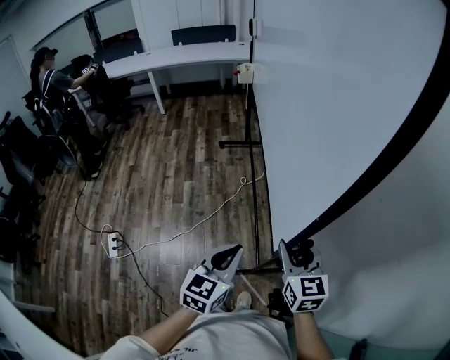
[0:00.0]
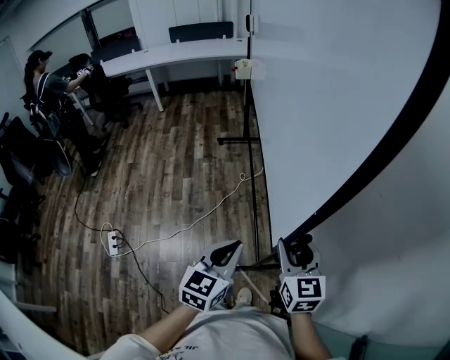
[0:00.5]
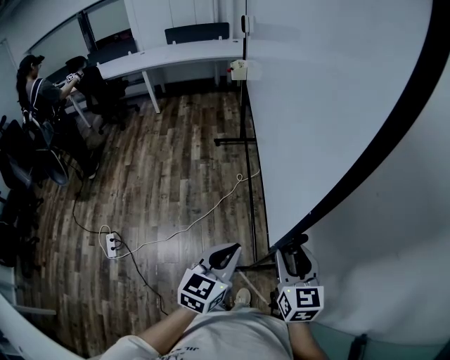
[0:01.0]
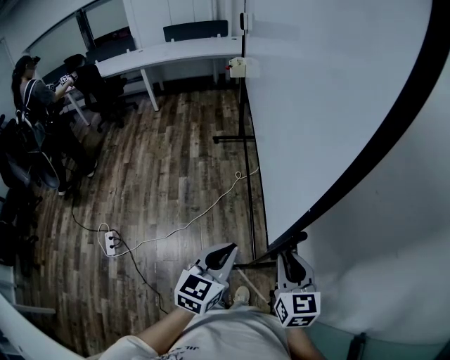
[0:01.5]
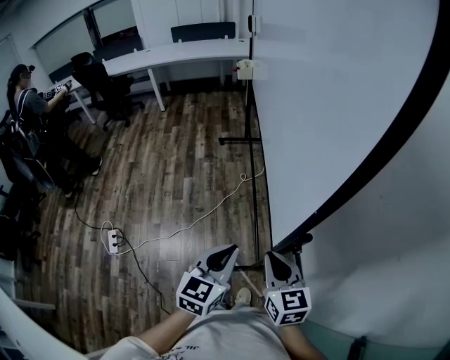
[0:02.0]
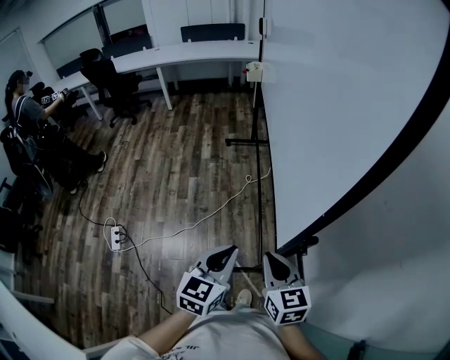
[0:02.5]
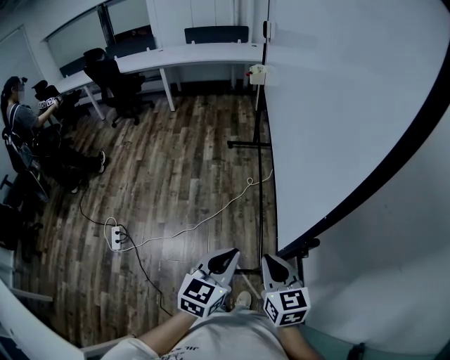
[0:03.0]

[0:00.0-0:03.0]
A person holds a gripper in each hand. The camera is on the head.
0:00.0 to 0:01.5: The right gripper shifts approximately 5 cm backward, and closes its fingers.
0:01.5 to 0:03.0: The right gripper moves to the left, roughly 10 cm.

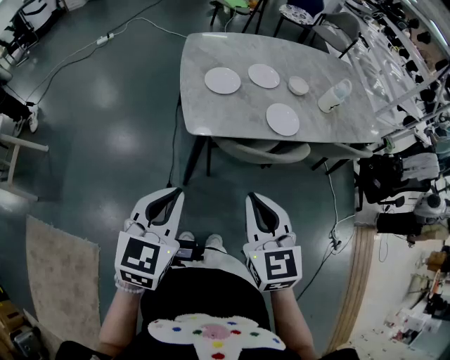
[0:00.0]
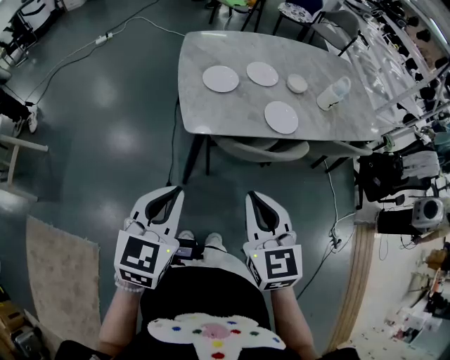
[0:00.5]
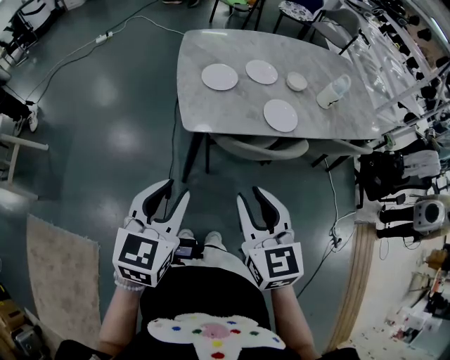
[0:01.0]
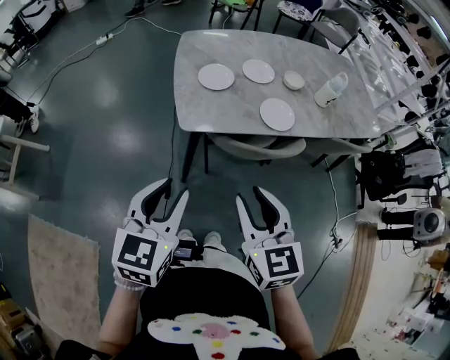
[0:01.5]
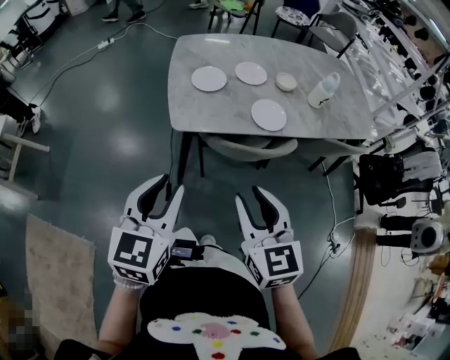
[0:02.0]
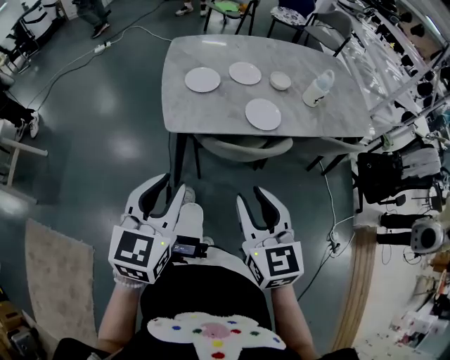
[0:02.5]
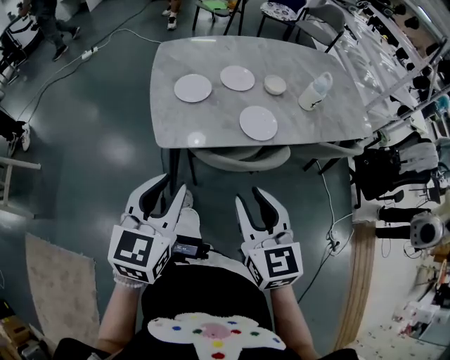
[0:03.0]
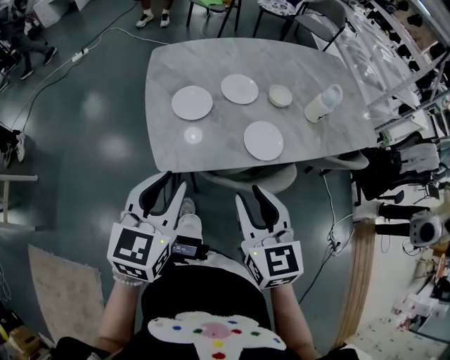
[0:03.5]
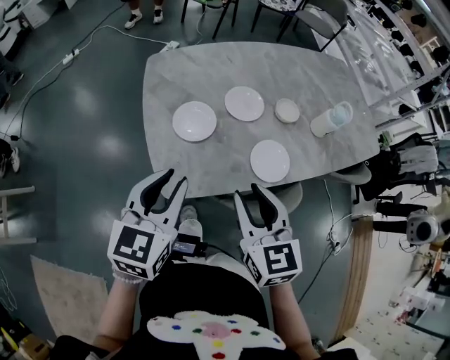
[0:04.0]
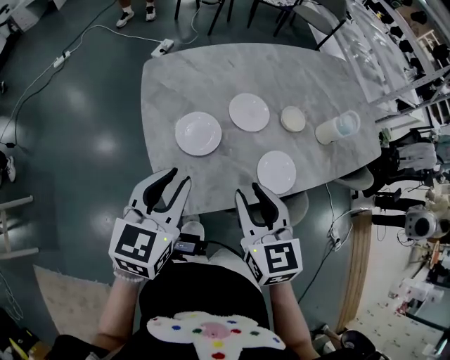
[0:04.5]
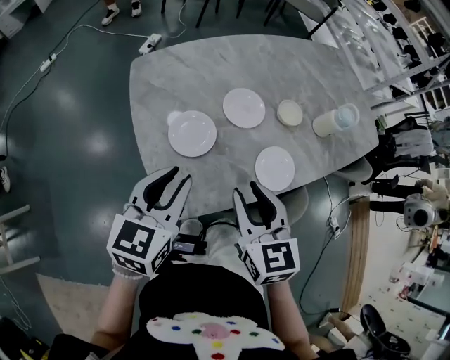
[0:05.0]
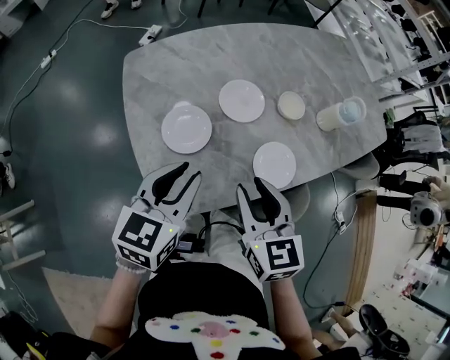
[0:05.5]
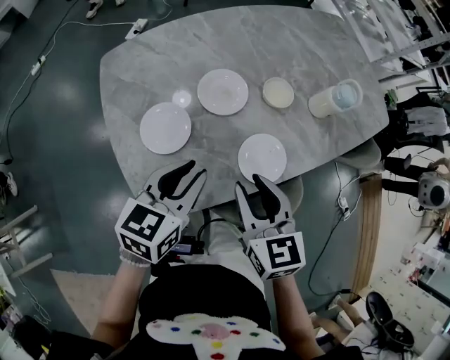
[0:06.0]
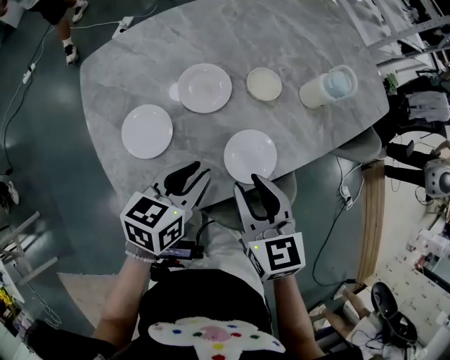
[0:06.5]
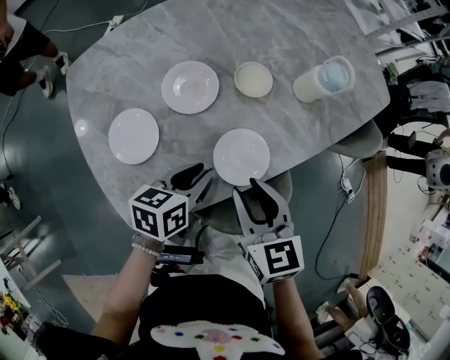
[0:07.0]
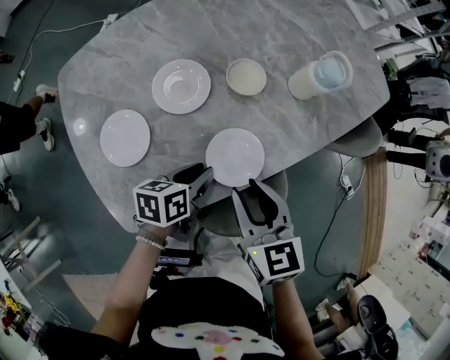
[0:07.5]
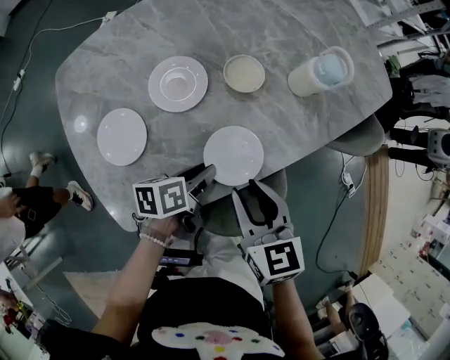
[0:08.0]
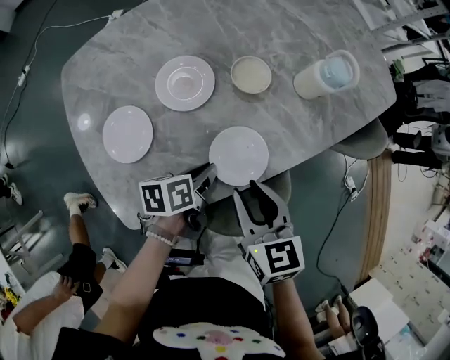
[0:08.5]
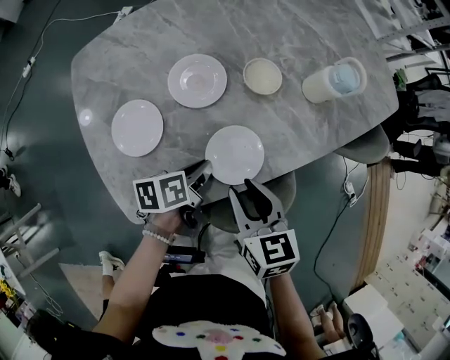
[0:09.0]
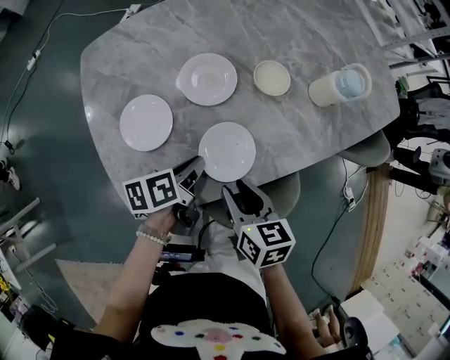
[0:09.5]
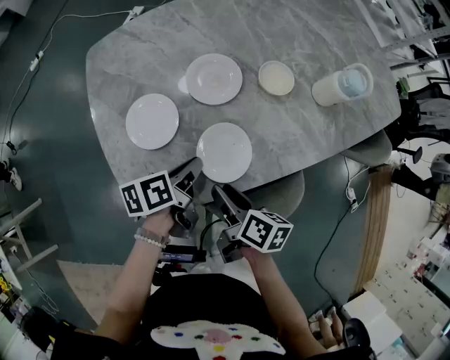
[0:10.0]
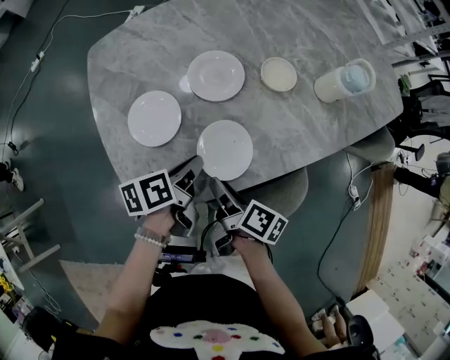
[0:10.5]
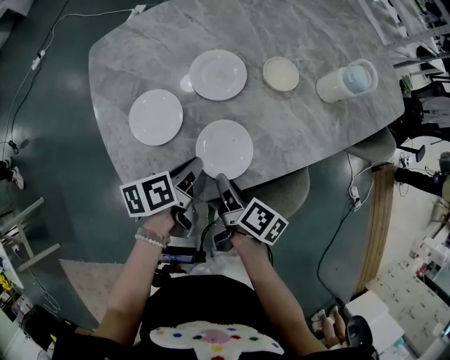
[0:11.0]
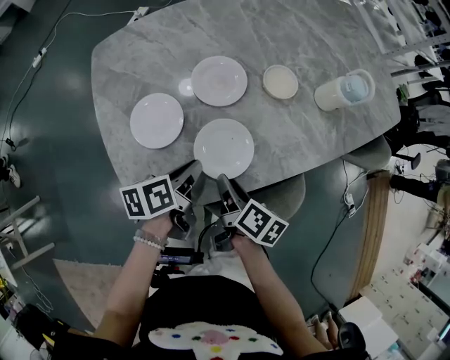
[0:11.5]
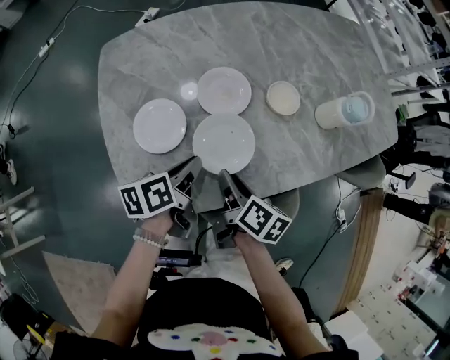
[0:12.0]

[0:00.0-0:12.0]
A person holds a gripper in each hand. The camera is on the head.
0:00.0 to 0:02.0: Both grippers move to the right, approximately 5 cm. The right gripper opens up. The left gripper opens.
0:02.0 to 0:04.0: Both grippers travel together forward, some 25 cm.
0:04.0 to 0:06.0: The right gripper goes about 10 cm forward and downward. The left gripper travels forward, downward and to the right by roughly 15 cm, and changes its angle by about 20 degrees.
0:06.0 to 0:08.0: The right gripper travels to the right and downward by about 10 cm; the left gripper goes approximately 20 cm downward and to the right, and rotates around the line of its fingers by roughly 40 degrees, counterclockwise from behind.
0:08.0 to 0:10.0: The left gripper is displaced to the left by approximately 10 cm, and closes up, while the right gripper heads downward, to the left and backward, covering some 15 cm, and rotates around the line of its fingers by some 50 degrees, clockwise from behind.
0:10.0 to 0:12.0: The right gripper goes approximately 5 cm forward.

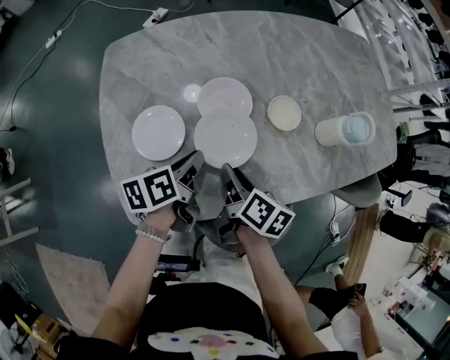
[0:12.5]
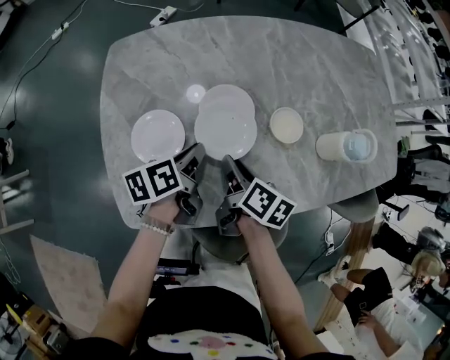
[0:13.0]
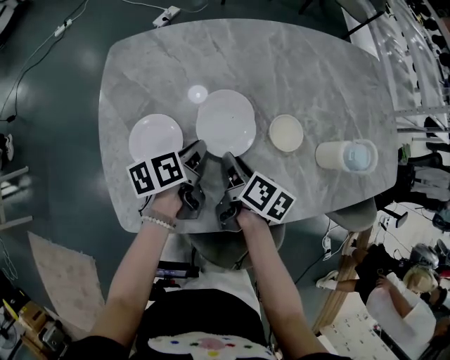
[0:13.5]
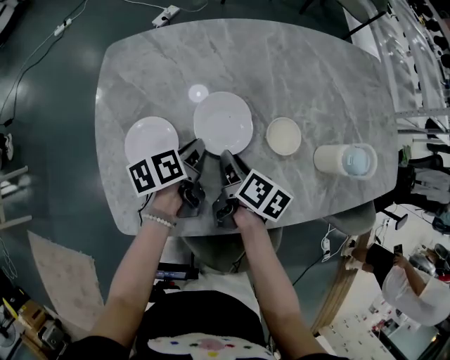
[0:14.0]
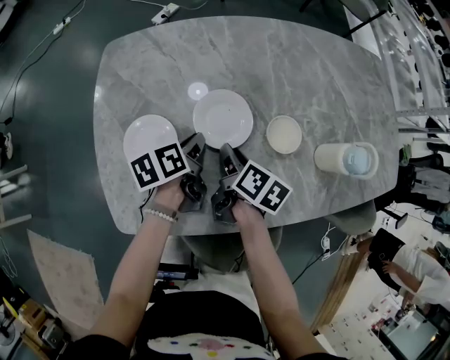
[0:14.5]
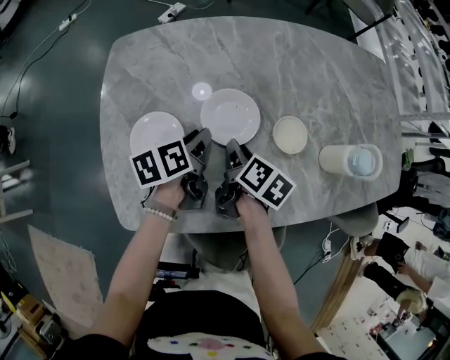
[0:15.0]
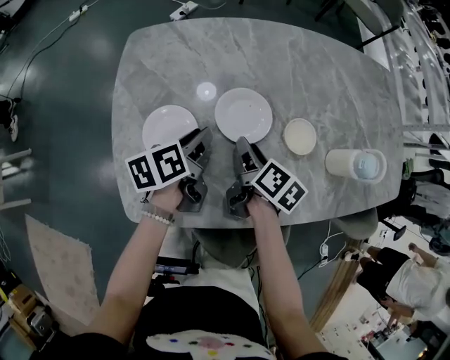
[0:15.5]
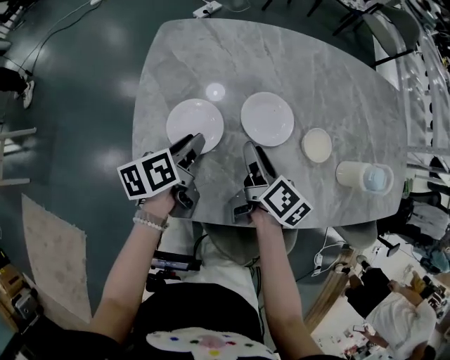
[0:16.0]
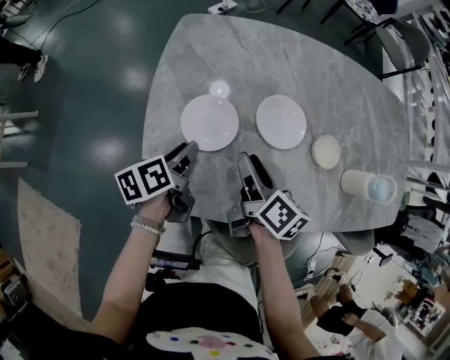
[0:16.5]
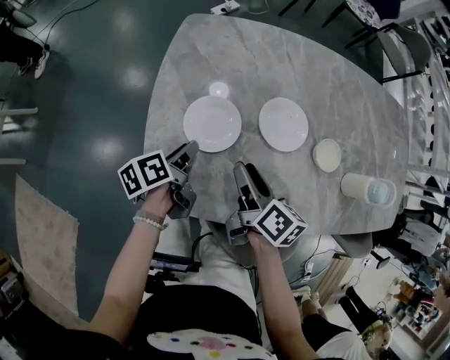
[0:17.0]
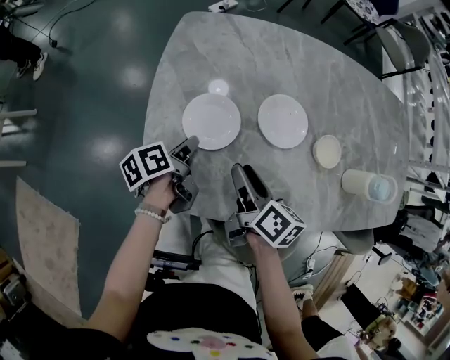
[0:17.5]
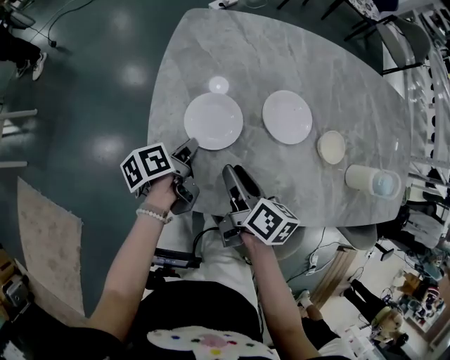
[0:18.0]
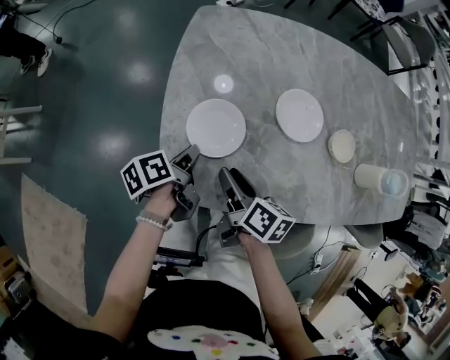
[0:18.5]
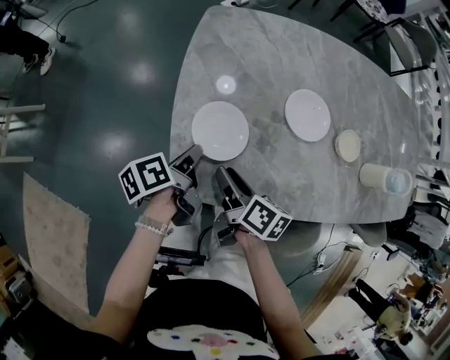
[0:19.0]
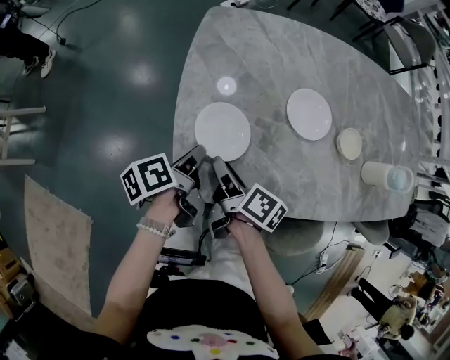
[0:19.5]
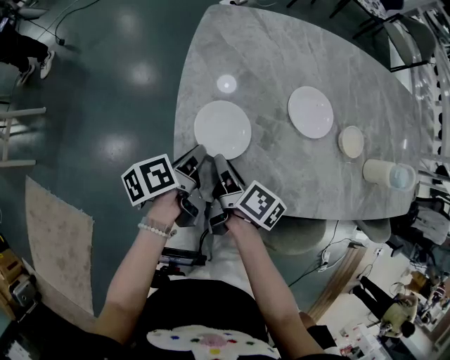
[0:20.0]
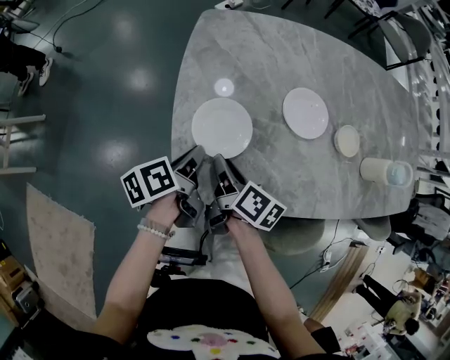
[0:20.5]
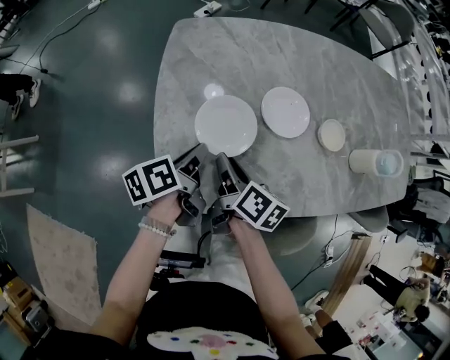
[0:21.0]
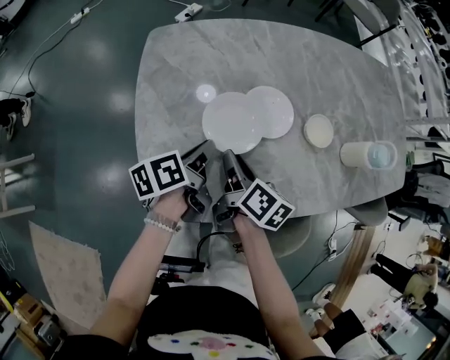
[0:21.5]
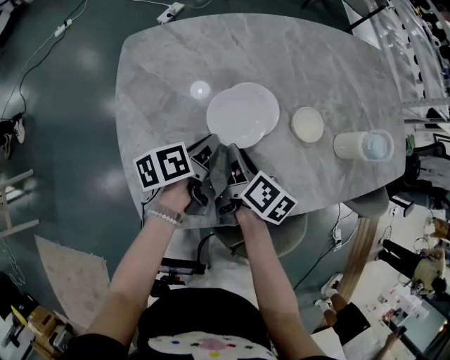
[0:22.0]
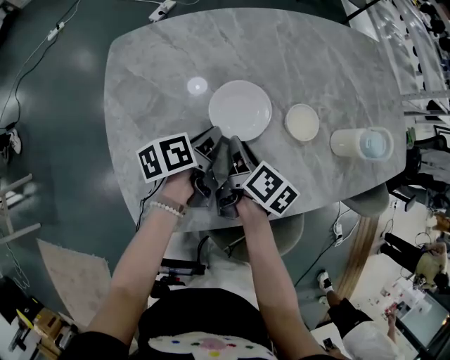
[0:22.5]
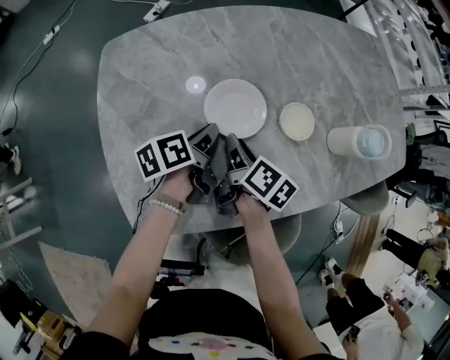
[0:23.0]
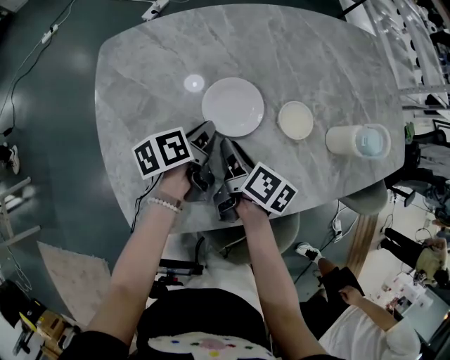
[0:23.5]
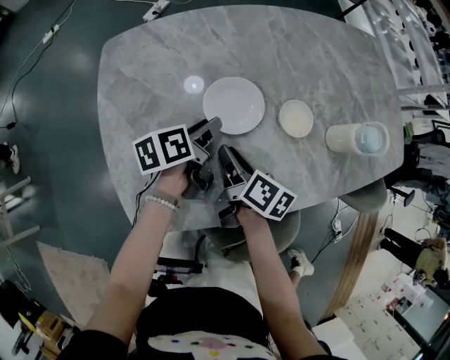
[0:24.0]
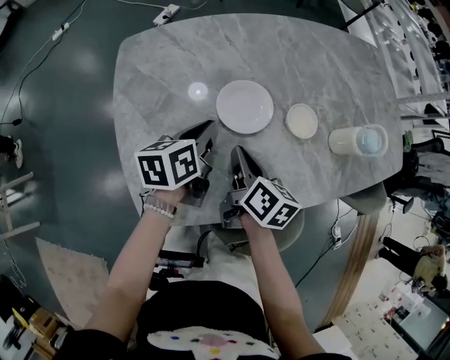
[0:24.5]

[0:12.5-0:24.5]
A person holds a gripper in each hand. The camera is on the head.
0:12.5 to 0:14.5: Both grippers travel together forward, approximately 10 cm.
0:14.5 to 0:16.5: The right gripper travels to the left and upward by some 10 cm, and opens. Meanwhile the left gripper moves to the left and backward, some 20 cm, and opens up.
0:16.5 to 0:18.5: The right gripper goes approximately 10 cm to the left and backward. The left gripper moves approximately 5 cm, and closes up.
0:18.5 to 0:20.5: The right gripper heads to the left, covering roughly 5 cm.
0:20.5 to 0:22.5: Both grippers move to the right and forward, some 25 cm. The left gripper changes its angle by approximately 20 degrees. The right gripper rotates approximately 20 degrees.
0:22.5 to 0:24.5: The right gripper moves some 5 cm, and closes. Meanwhile the left gripper heads upward, covering about 5 cm, changes its angle by roughly 20 degrees, and opens, then closes again.
